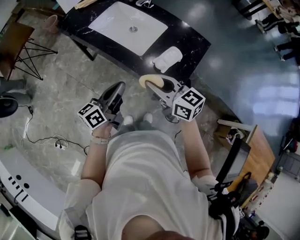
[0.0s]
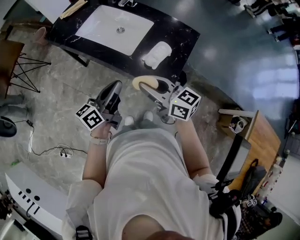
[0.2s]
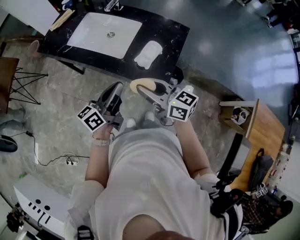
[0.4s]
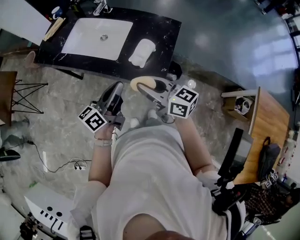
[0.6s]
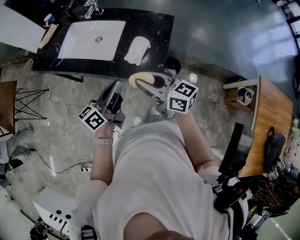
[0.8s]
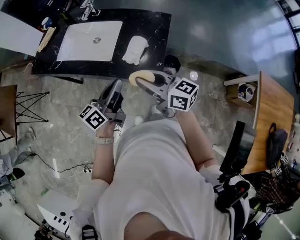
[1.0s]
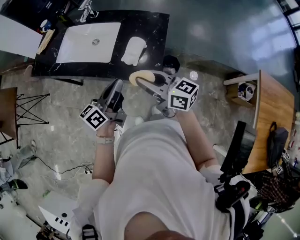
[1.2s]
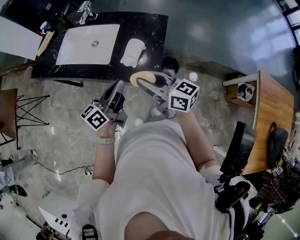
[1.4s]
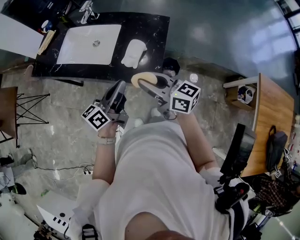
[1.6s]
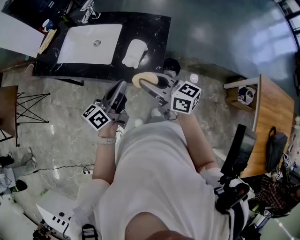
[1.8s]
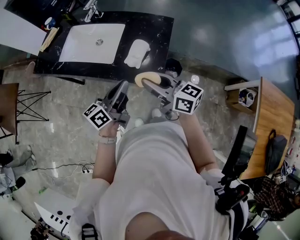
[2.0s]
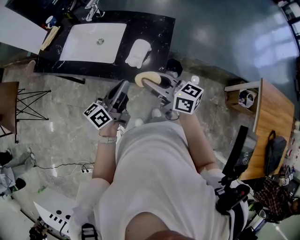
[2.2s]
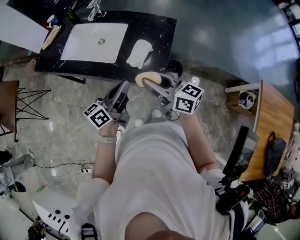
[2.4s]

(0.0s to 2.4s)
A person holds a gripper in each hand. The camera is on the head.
0.0s - 1.2s: The grippers both shift to the right by some 10 cm. The right gripper rotates roughly 20 degrees.
1.2s - 2.4s: Neither gripper changes place.

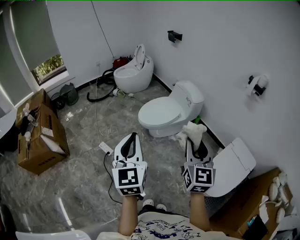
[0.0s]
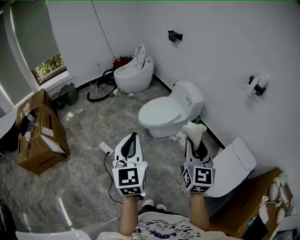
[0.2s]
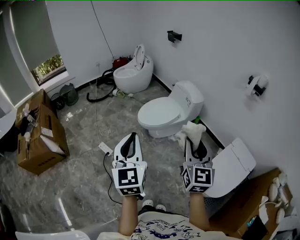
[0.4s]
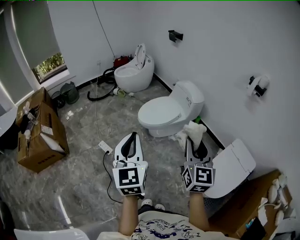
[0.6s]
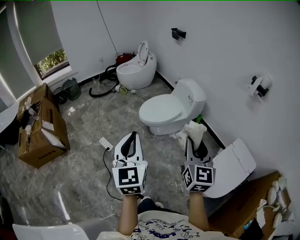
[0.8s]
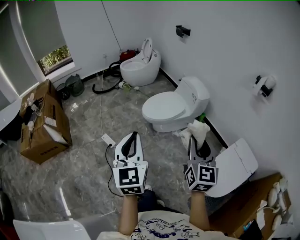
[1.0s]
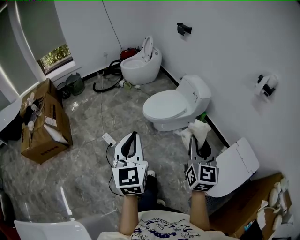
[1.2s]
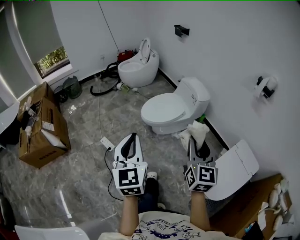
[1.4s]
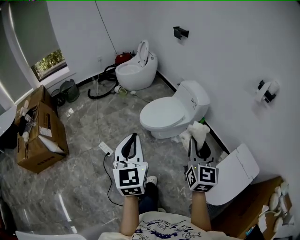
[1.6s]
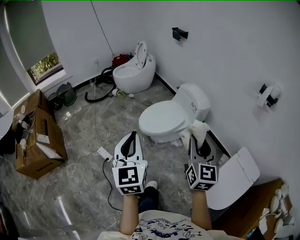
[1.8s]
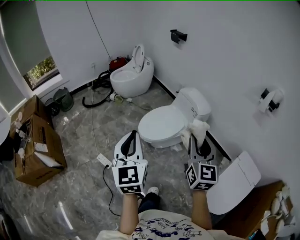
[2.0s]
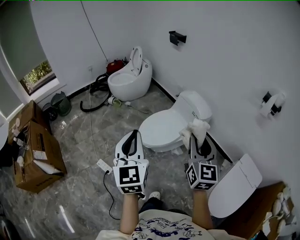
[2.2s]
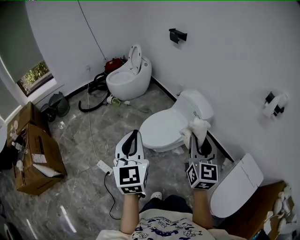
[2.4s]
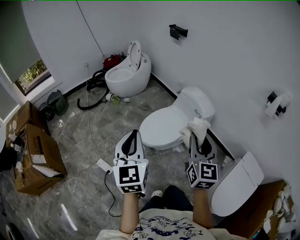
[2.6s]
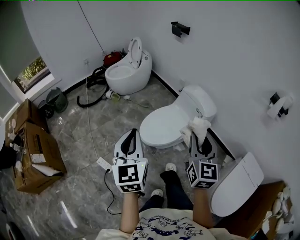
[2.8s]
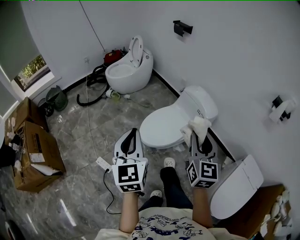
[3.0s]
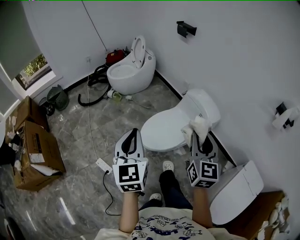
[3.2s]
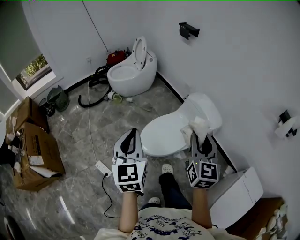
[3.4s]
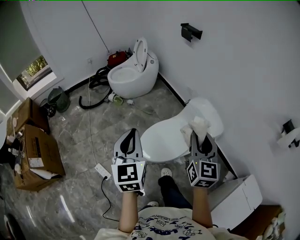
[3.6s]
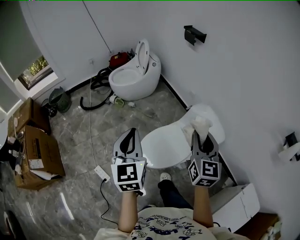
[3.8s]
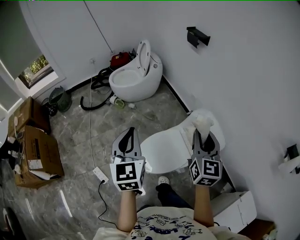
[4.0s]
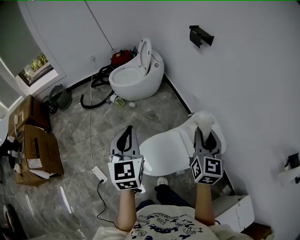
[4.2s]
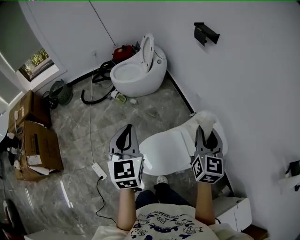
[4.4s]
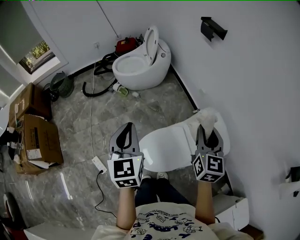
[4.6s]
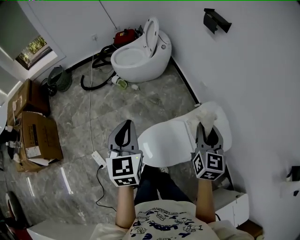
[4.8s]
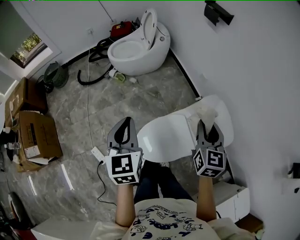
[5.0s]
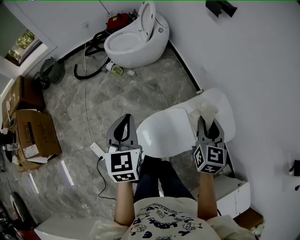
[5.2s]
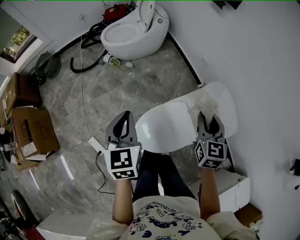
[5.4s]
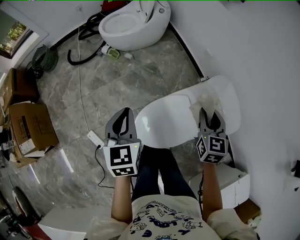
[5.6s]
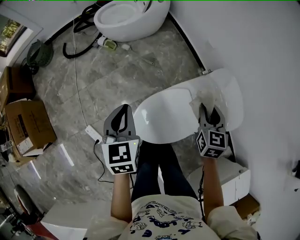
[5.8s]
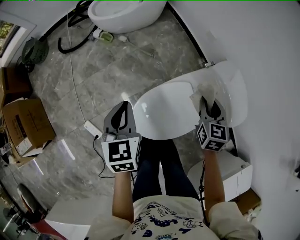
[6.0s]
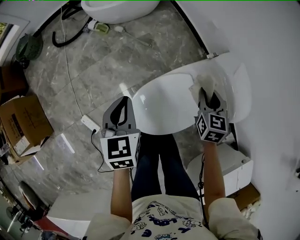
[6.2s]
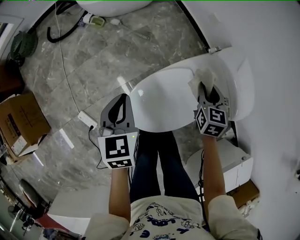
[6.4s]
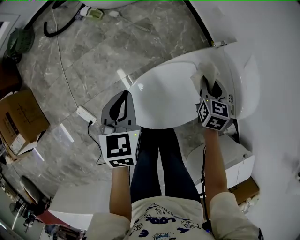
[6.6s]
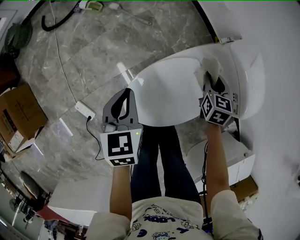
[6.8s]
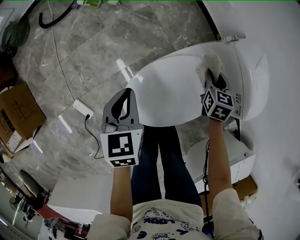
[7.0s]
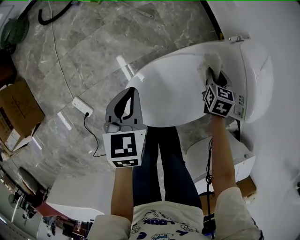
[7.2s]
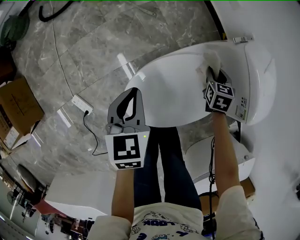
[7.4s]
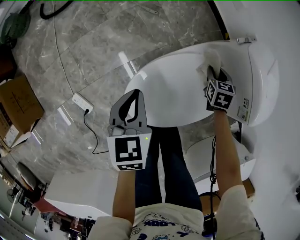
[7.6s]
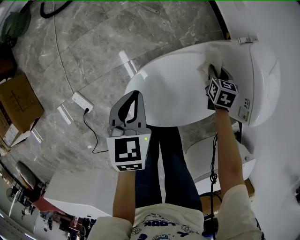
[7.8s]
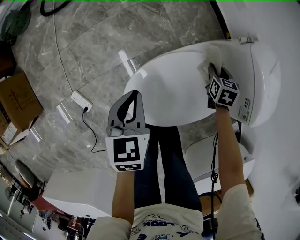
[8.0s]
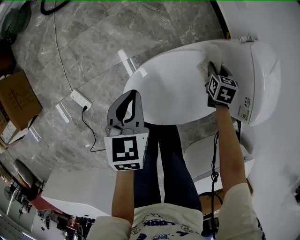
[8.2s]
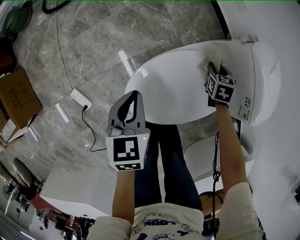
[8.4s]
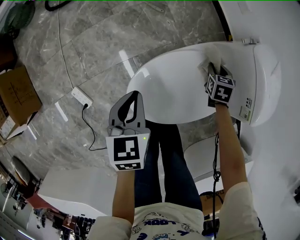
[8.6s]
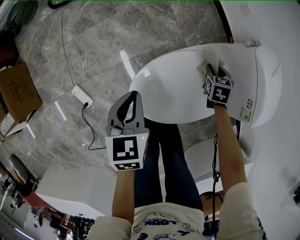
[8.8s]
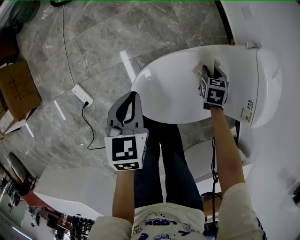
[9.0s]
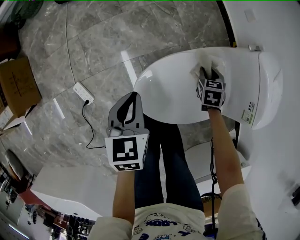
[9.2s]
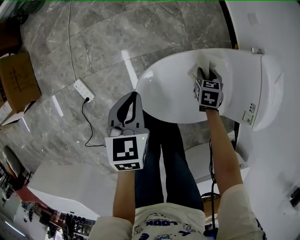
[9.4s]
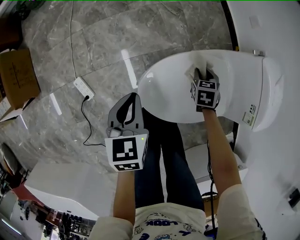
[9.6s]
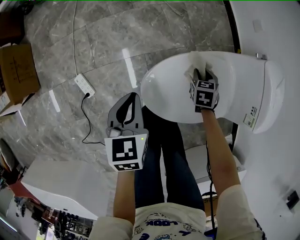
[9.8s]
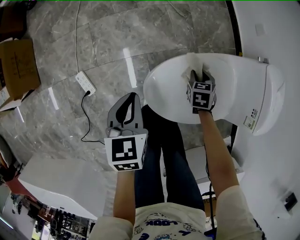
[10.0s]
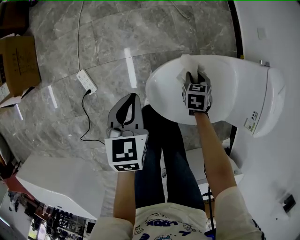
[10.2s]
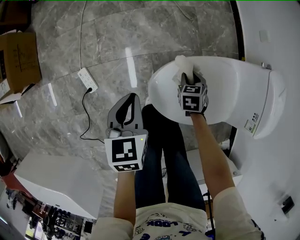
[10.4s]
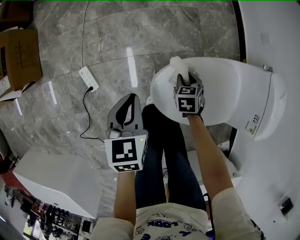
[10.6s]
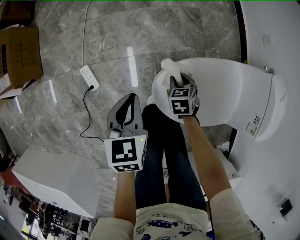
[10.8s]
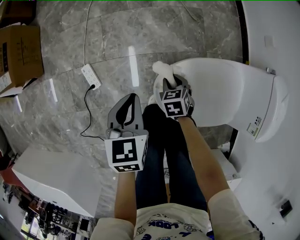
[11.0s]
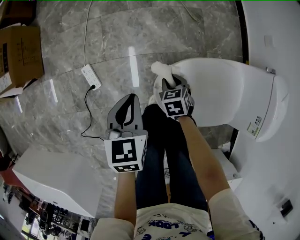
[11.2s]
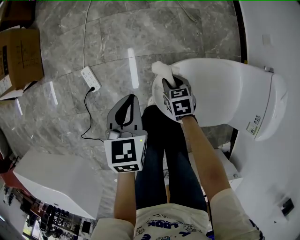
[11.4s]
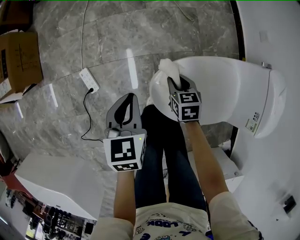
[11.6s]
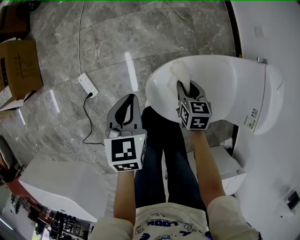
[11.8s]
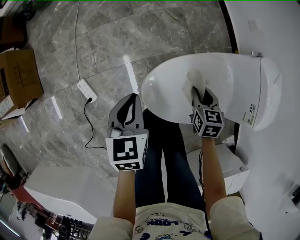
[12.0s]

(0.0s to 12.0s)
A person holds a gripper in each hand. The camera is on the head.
0.0s - 1.6s: Both grippers move forward, roughly 10 cm.
1.6s - 3.0s: The grippers both shift forward by approximately 30 cm.
3.0s - 4.4s: The two grippers go some 40 cm forward.
4.4s - 6.0s: Both grippers move downward, roughly 30 cm. The right gripper swivels about 30 degrees, while the left gripper changes its angle by approximately 20 degrees.
6.0s - 7.6s: Both grippers travel together downward, about 25 cm. The right gripper rotates approximately 20 degrees.
7.6s - 9.0s: The right gripper is displaced to the left by some 5 cm. The left gripper is displaced backward and to the left by approximately 10 cm.
9.0s - 10.4s: The right gripper moves to the left, some 20 cm; the left gripper moves to the left and backward, approximately 15 cm.
10.4s - 12.0s: The left gripper changes place by some 5 cm. Meanwhile the right gripper heads upward and backward, covering some 10 cm, moves some 10 cm to the left and comes back, and turns by some 20 degrees.

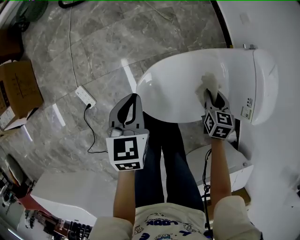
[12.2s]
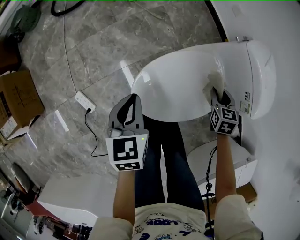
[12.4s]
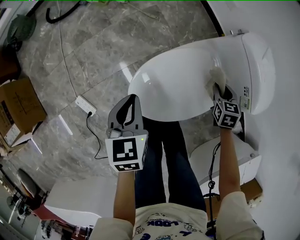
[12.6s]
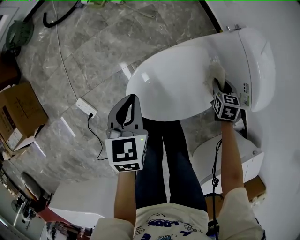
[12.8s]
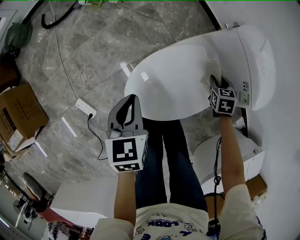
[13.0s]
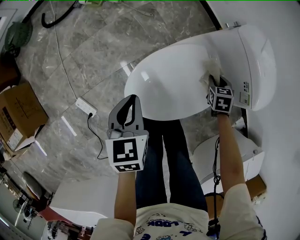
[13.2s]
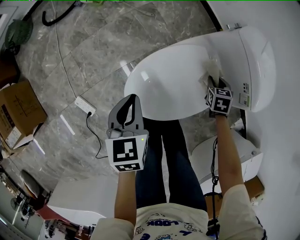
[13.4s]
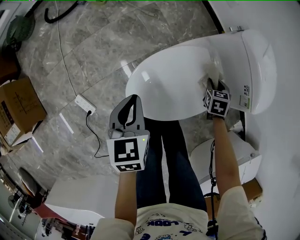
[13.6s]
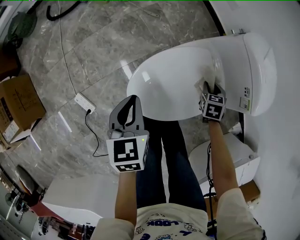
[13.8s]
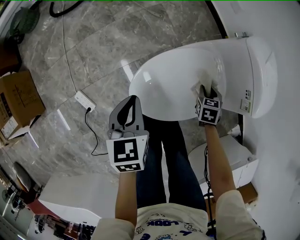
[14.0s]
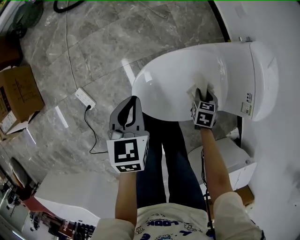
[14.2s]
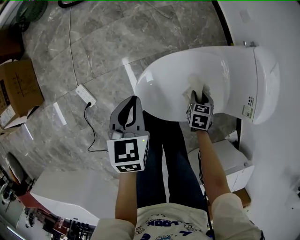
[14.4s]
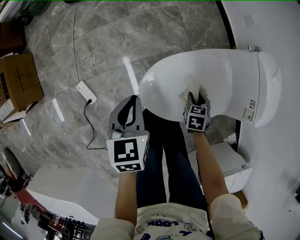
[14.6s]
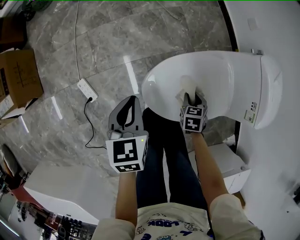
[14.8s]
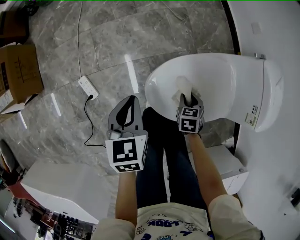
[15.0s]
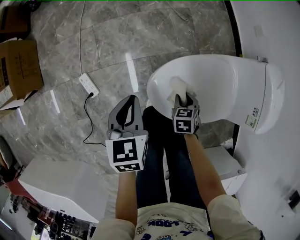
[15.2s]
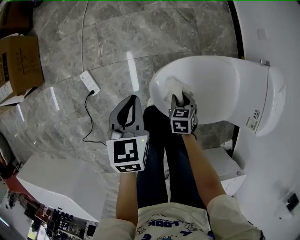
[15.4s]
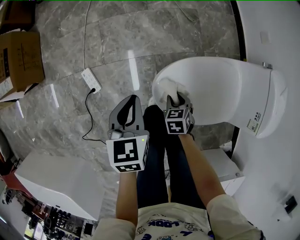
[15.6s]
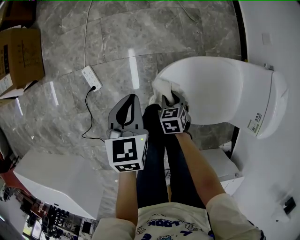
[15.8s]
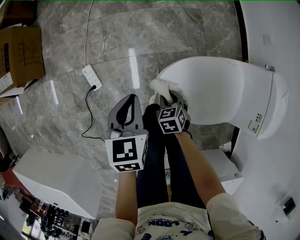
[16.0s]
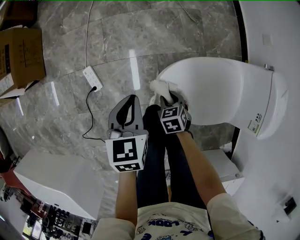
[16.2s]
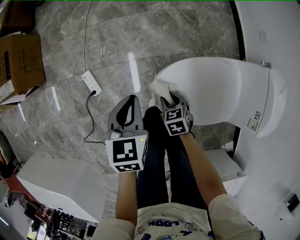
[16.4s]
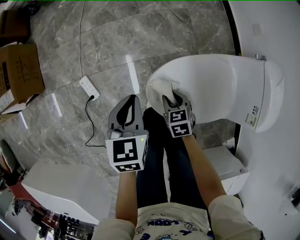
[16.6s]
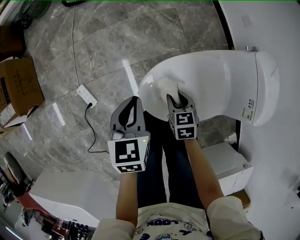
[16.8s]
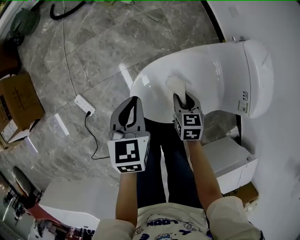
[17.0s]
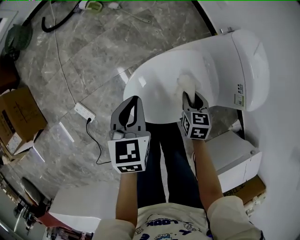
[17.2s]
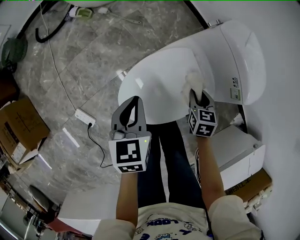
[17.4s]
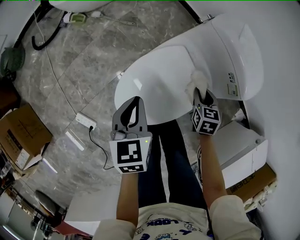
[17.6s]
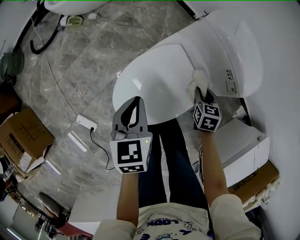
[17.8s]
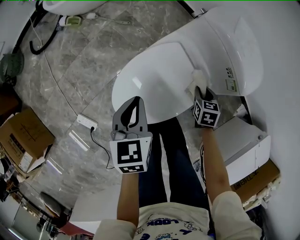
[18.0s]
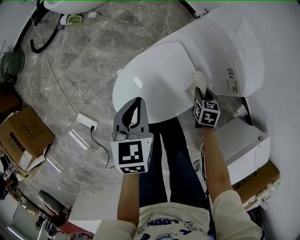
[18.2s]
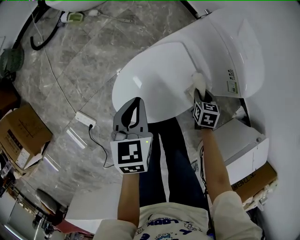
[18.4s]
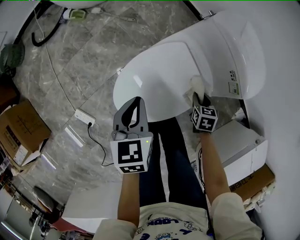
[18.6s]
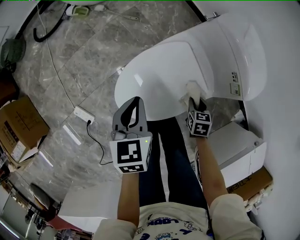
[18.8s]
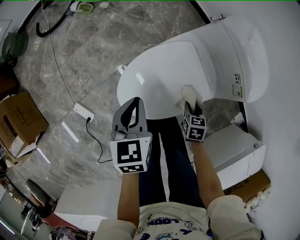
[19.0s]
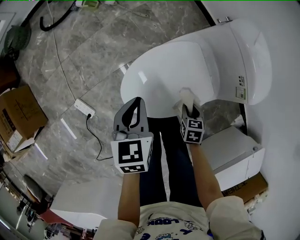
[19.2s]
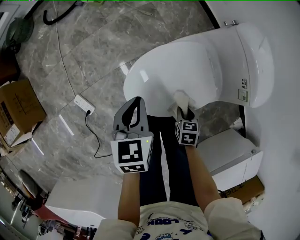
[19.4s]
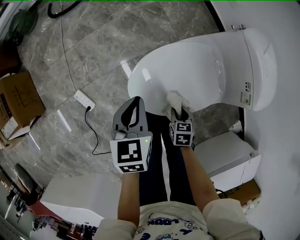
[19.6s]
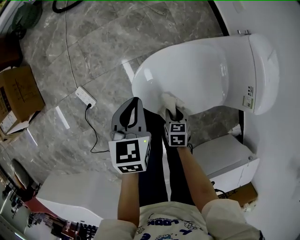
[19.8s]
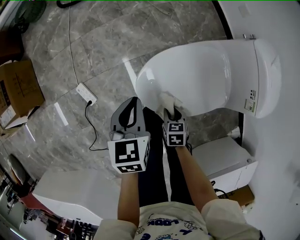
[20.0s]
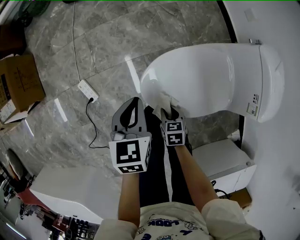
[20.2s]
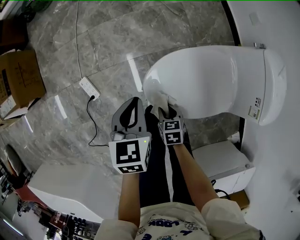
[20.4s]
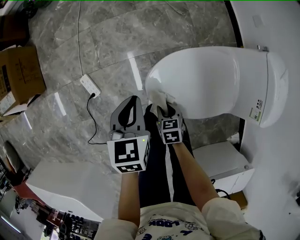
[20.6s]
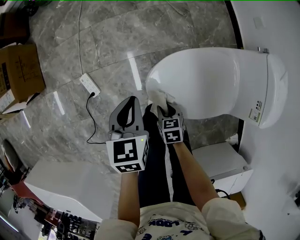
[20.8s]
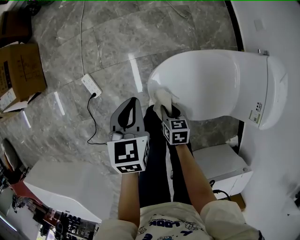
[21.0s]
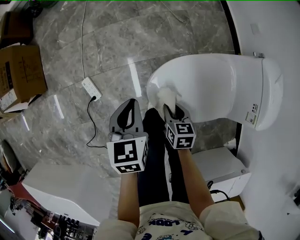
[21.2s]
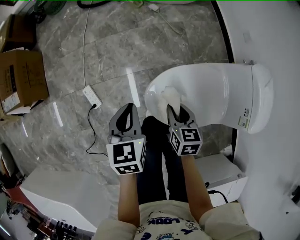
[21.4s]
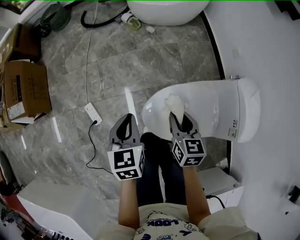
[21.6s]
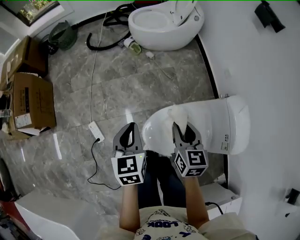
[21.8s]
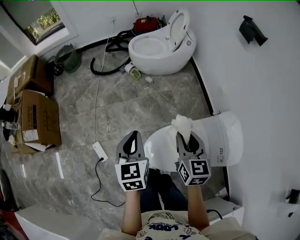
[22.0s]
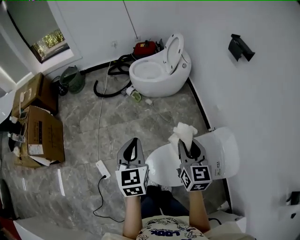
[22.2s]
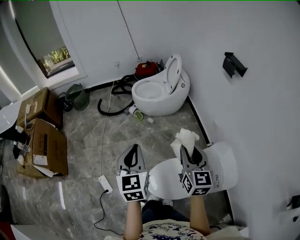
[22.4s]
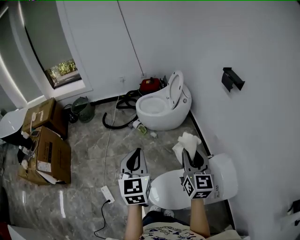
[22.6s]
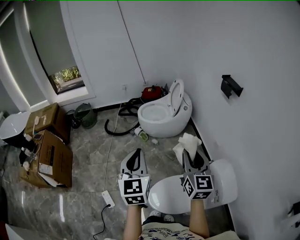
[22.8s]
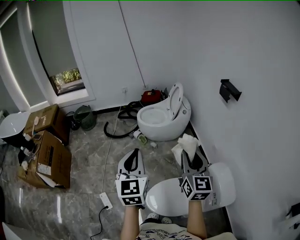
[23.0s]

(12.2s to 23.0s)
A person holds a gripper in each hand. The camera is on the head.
12.2s - 13.8s: The right gripper shifts roughly 10 cm to the right and downward, while the left gripper heads to the right, covering roughly 5 cm.
13.8s - 15.2s: The left gripper heads to the left and backward, covering some 15 cm. The right gripper goes some 25 cm to the left, and changes its angle by approximately 20 degrees.
15.2s - 16.8s: The right gripper is displaced upward by some 5 cm, and reaches roughly 10 cm to the left, then returns. Meanwhile the left gripper is displaced to the right by approximately 5 cm.
16.8s - 18.4s: The left gripper moves roughly 20 cm, and rotates about 20 degrees. Meanwhile the right gripper shifts by approximately 30 cm, and swivels roughly 40 degrees.
18.4s - 20.0s: The left gripper ends up some 20 cm from where it was. The right gripper changes place by approximately 30 cm, and swivels some 30 degrees.
20.0s - 21.4s: The right gripper heads upward and forward, covering some 20 cm; the left gripper is displaced to the left and upward by about 10 cm.
21.4s - 23.0s: Both grippers move upward, about 50 cm. The left gripper tips its fingers upward by approximately 40 degrees; the right gripper tilts its fingers about 50 degrees upward.
